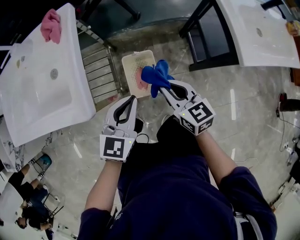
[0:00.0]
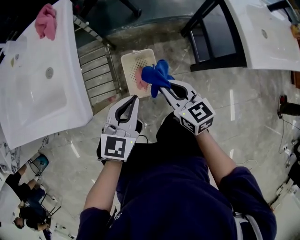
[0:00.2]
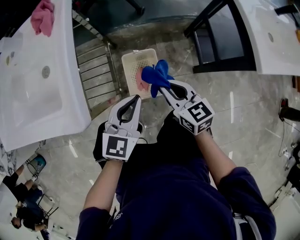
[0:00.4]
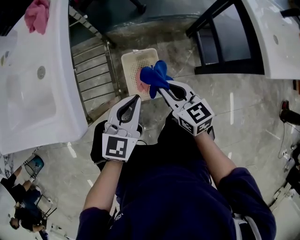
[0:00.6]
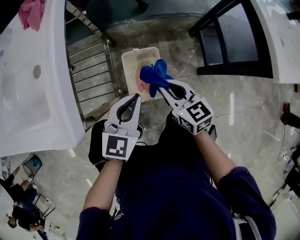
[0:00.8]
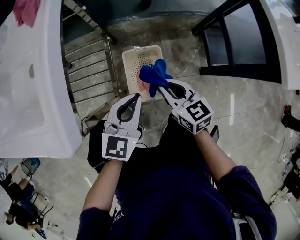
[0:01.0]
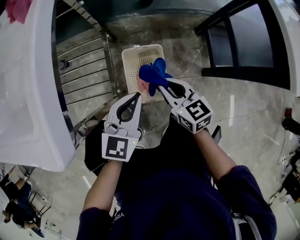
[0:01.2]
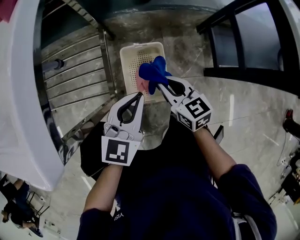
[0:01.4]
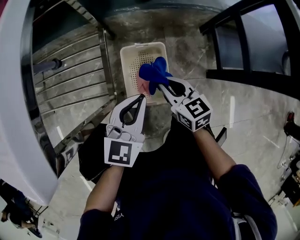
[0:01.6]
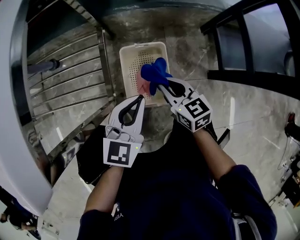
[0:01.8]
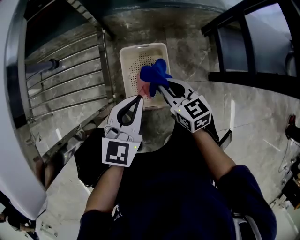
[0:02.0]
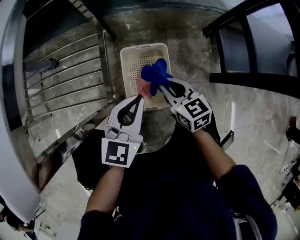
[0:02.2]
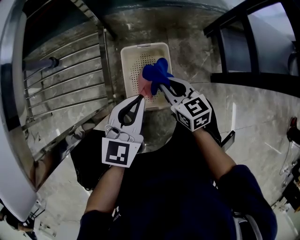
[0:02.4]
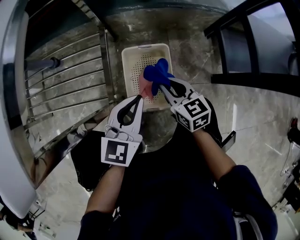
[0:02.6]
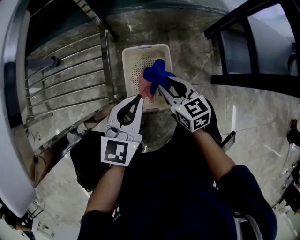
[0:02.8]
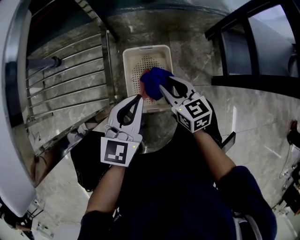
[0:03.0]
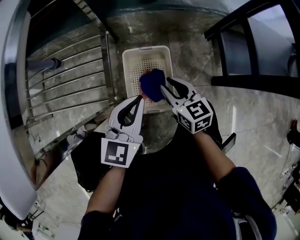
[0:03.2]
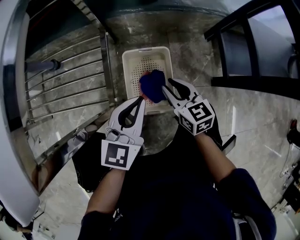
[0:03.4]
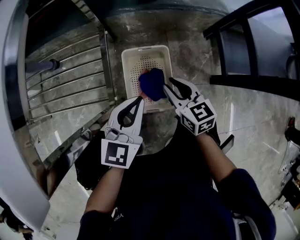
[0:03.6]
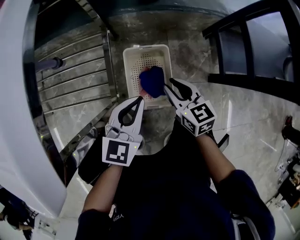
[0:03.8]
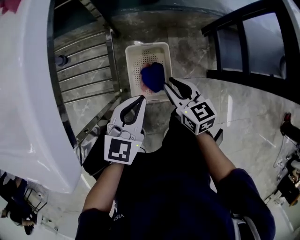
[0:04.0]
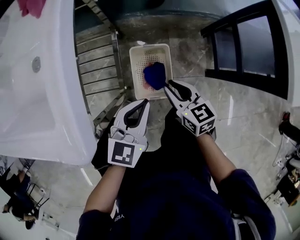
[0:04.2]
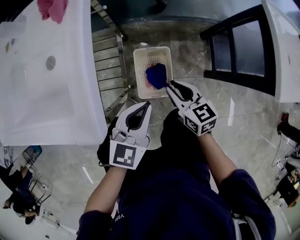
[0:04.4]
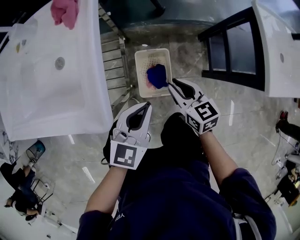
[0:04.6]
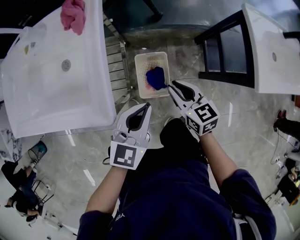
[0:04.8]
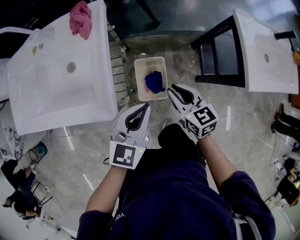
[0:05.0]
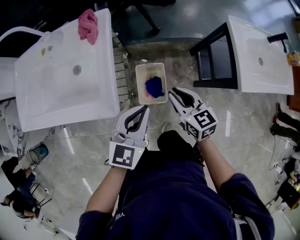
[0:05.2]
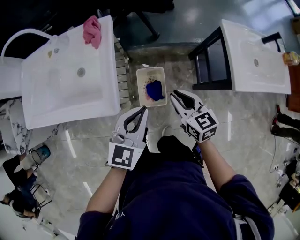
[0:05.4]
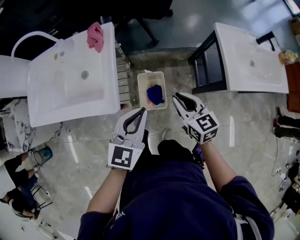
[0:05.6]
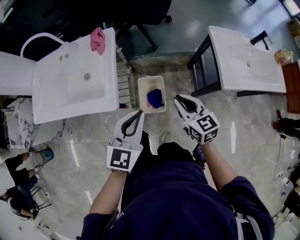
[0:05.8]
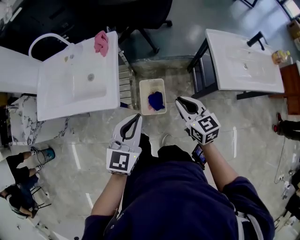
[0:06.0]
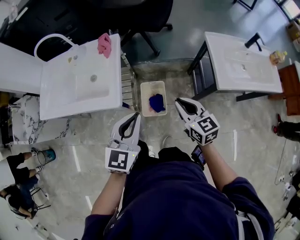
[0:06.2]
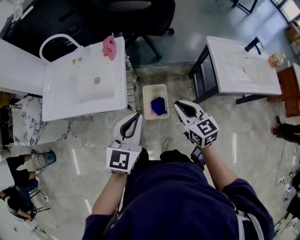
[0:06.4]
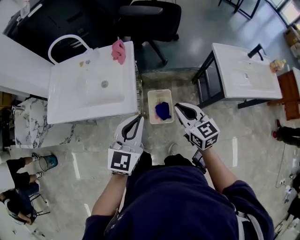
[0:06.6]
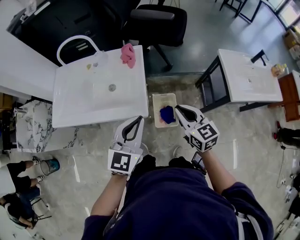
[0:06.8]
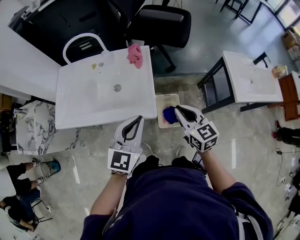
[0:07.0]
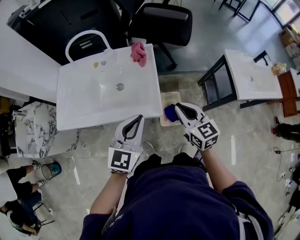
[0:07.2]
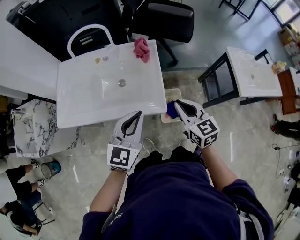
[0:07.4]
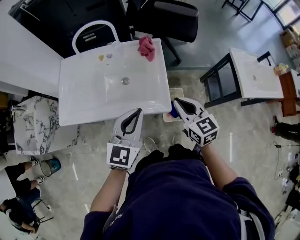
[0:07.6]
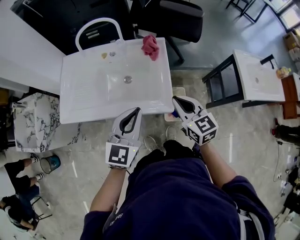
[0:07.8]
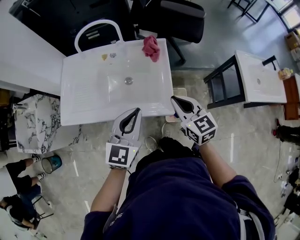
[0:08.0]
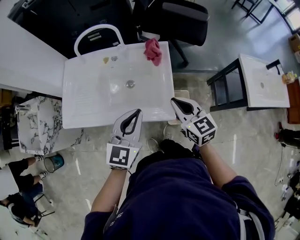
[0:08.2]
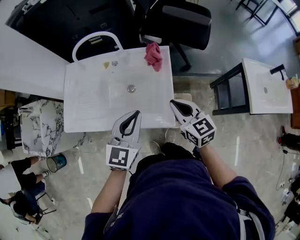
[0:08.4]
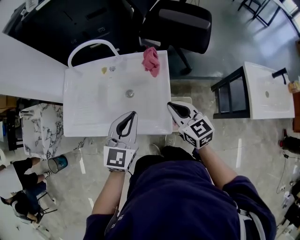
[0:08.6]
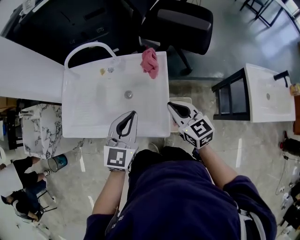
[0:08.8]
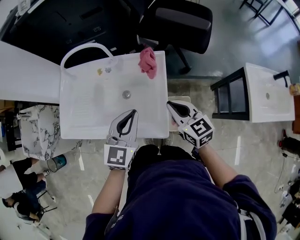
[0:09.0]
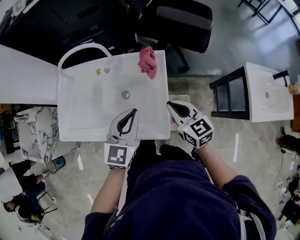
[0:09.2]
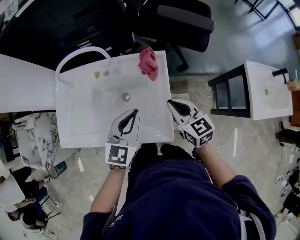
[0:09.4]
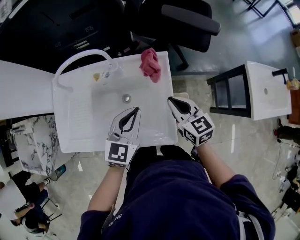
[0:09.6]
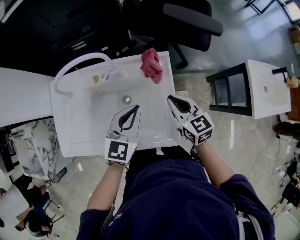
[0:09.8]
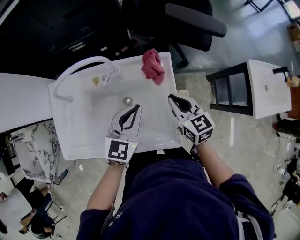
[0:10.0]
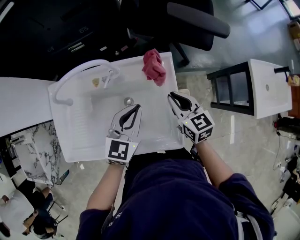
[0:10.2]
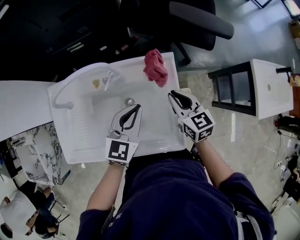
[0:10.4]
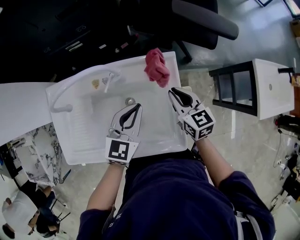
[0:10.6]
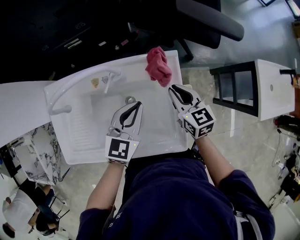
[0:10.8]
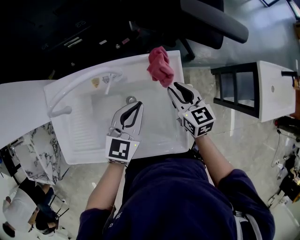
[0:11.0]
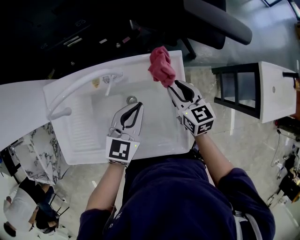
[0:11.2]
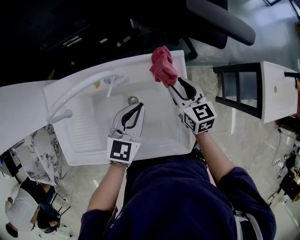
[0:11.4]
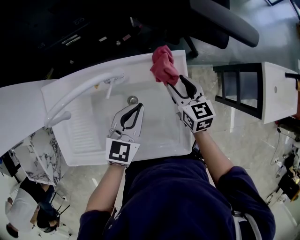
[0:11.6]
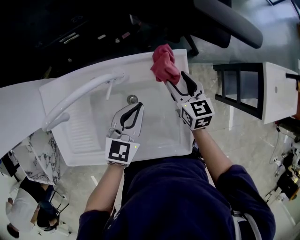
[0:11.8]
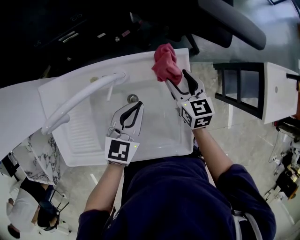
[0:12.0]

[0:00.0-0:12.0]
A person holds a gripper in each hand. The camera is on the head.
0:00.0 to 0:01.6: The grippers both shift downward by some 25 cm.
0:01.6 to 0:03.0: The right gripper moves downward, roughly 5 cm. The left gripper changes place by some 5 cm.
0:03.0 to 0:04.4: Both grippers move upward, about 20 cm.
0:04.4 to 0:06.0: Both grippers travel together upward, about 30 cm.
0:06.0 to 0:07.6: Both grippers move to the left, approximately 30 cm.
0:07.6 to 0:09.0: The two grippers go about 15 cm forward.
0:09.0 to 0:10.4: The two grippers go about 15 cm forward and downward.
0:10.4 to 0:12.0: The left gripper is displaced downward by approximately 5 cm; the right gripper shifts some 10 cm forward and downward, and opens its fingers.

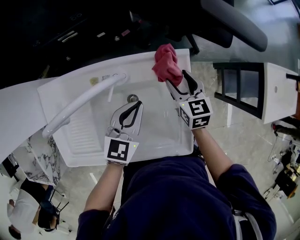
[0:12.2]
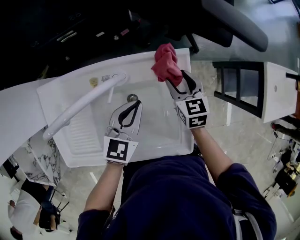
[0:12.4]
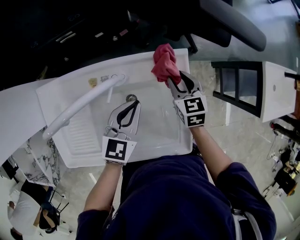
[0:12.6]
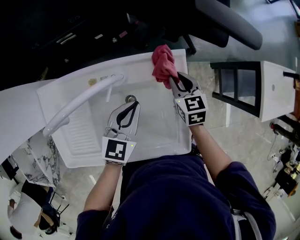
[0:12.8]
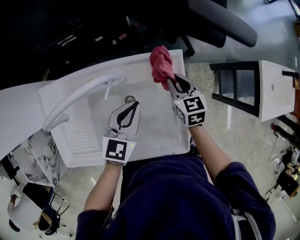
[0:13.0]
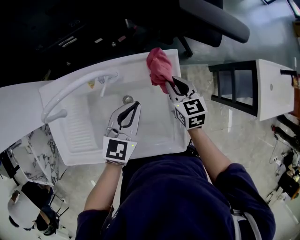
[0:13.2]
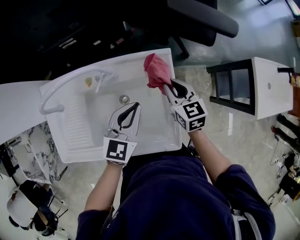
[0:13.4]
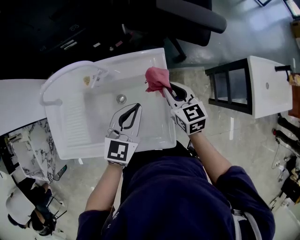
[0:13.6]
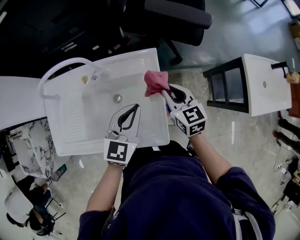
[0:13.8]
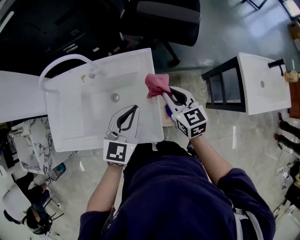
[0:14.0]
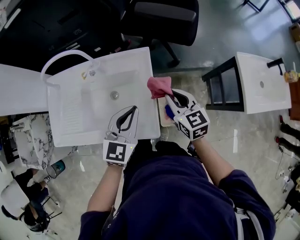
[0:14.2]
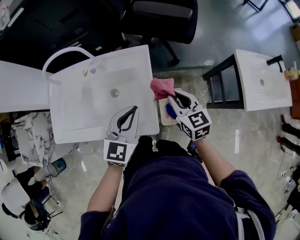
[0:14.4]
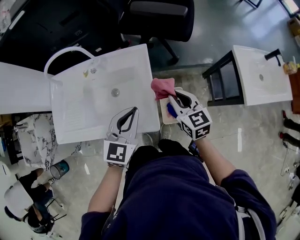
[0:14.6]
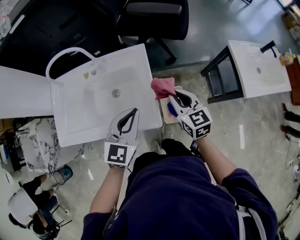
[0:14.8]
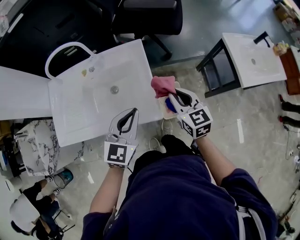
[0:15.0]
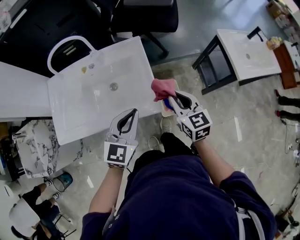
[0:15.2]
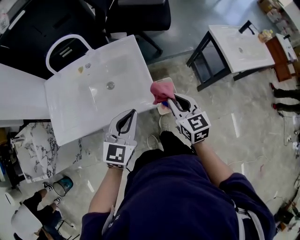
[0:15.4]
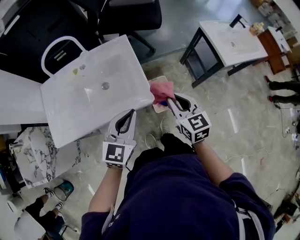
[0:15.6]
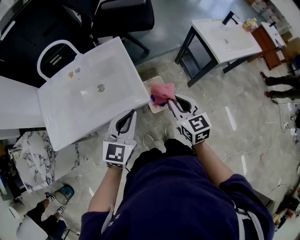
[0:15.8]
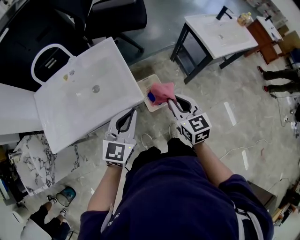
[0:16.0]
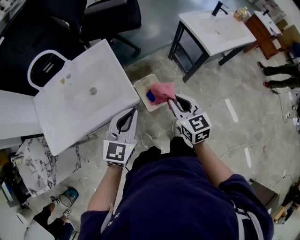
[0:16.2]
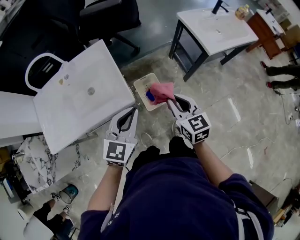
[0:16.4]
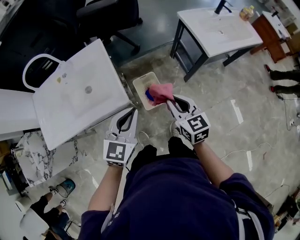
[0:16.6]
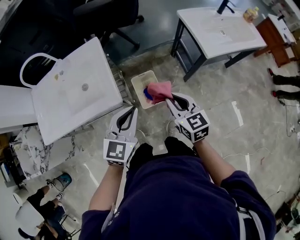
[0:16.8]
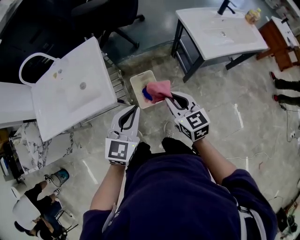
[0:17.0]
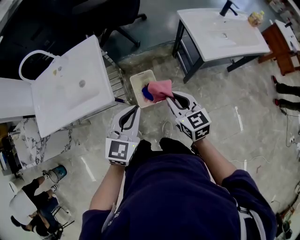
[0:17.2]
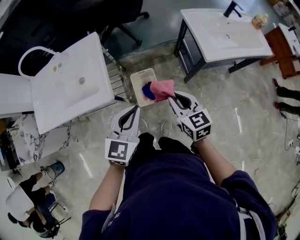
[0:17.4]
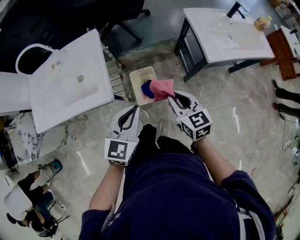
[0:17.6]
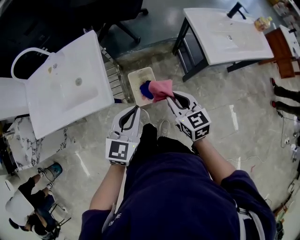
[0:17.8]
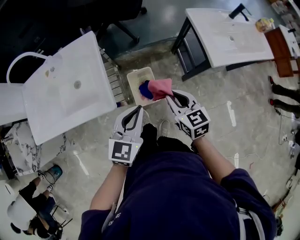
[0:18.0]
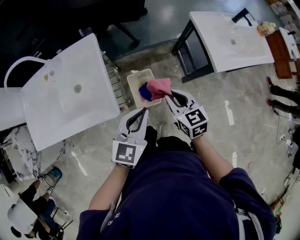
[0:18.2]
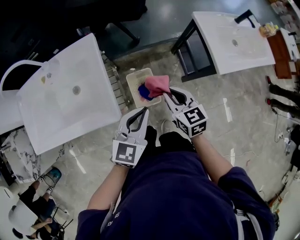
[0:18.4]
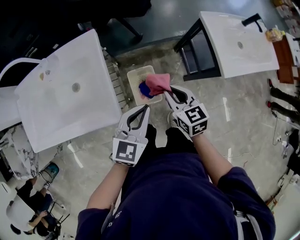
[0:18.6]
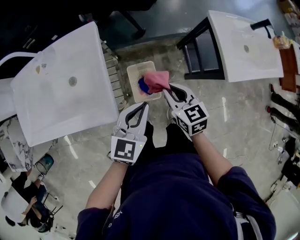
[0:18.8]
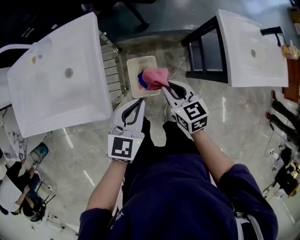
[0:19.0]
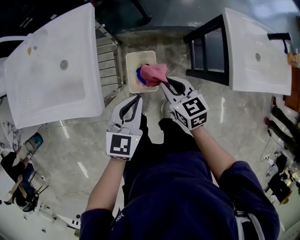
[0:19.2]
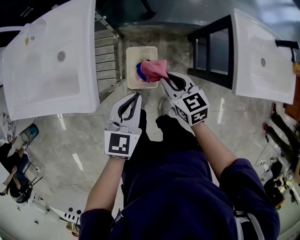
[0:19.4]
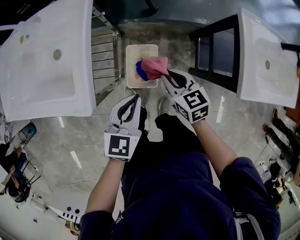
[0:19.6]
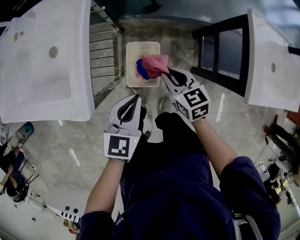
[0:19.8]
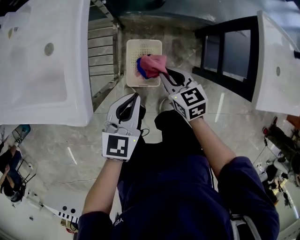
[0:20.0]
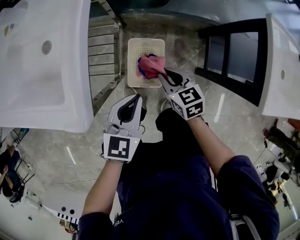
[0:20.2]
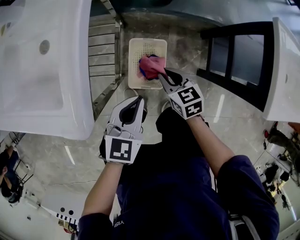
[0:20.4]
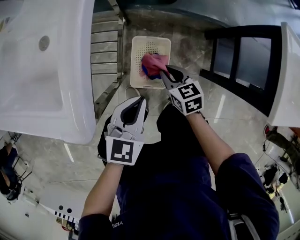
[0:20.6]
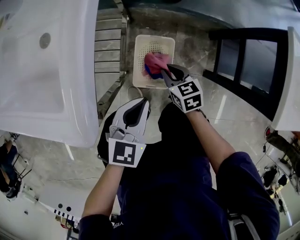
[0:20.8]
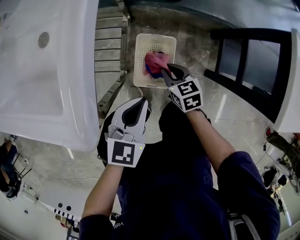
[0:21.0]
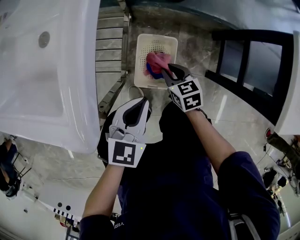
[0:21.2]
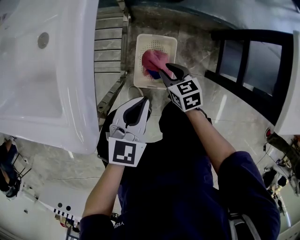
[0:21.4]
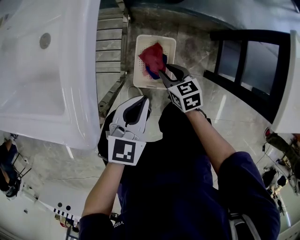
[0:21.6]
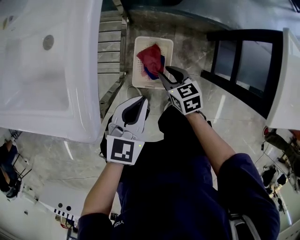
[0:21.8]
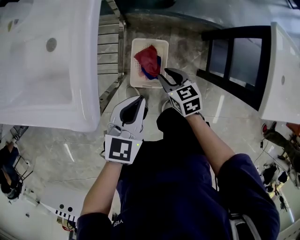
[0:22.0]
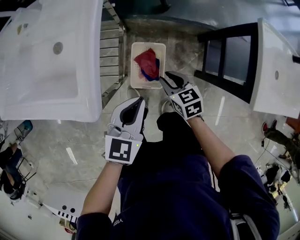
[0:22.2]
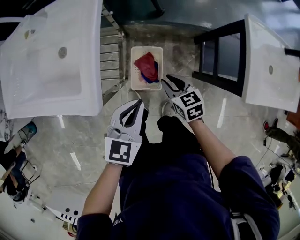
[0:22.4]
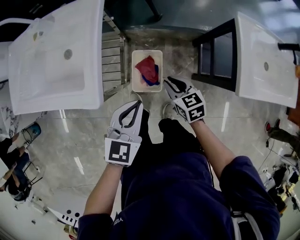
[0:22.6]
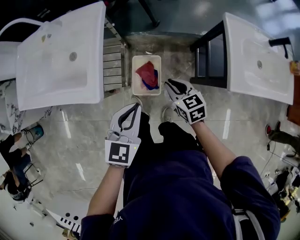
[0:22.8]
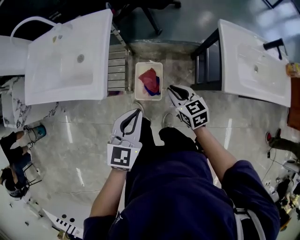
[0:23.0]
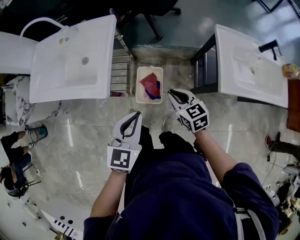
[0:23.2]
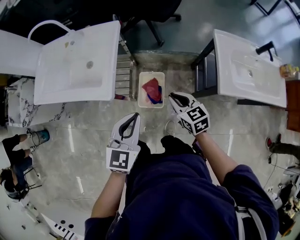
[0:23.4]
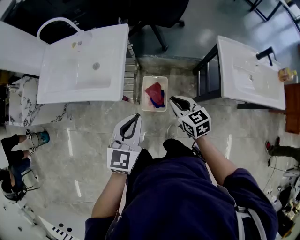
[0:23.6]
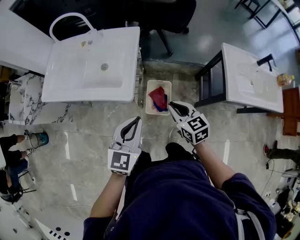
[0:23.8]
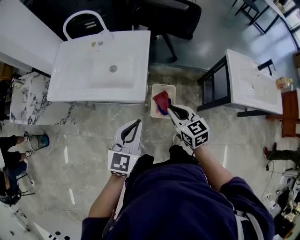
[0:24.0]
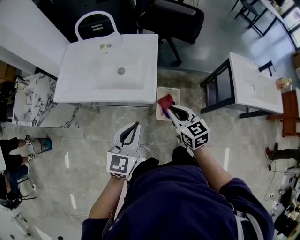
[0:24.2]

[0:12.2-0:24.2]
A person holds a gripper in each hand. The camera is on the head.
0:12.2 to 0:13.8: The right gripper is displaced backward, upward and to the right by some 15 cm, and closes its fingers. Meanwhile the left gripper travels to the right, upward and backward by some 15 cm.
0:13.8 to 0:15.2: Both grippers travel together backward, some 20 cm.
0:15.2 to 0:16.6: The right gripper travels to the right and backward by some 20 cm, while the left gripper heads to the right, covering roughly 15 cm.
0:16.6 to 0:18.2: The left gripper is displaced forward and to the right by some 10 cm; the right gripper goes roughly 15 cm forward and downward.
0:18.2 to 0:19.8: The left gripper moves downward, approximately 20 cm, and rotates about 20 degrees. Meanwhile the right gripper goes about 25 cm downward and forward, and turns by about 20 degrees.
0:19.8 to 0:21.2: The right gripper shifts roughly 20 cm downward; the left gripper heads downward, covering about 10 cm.
0:21.2 to 0:22.6: Both grippers move upward, about 20 cm.
0:22.6 to 0:24.2: The left gripper travels to the left, upward and backward by roughly 30 cm. Meanwhile the right gripper heads upward, to the left and backward, covering roughly 35 cm.
